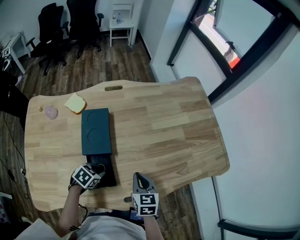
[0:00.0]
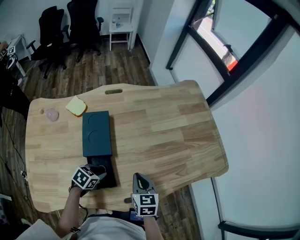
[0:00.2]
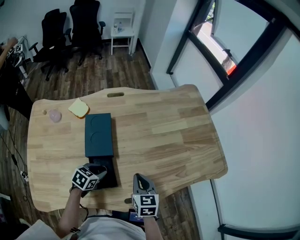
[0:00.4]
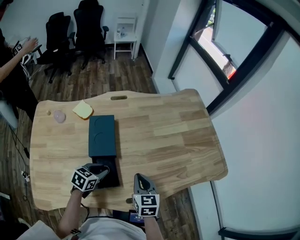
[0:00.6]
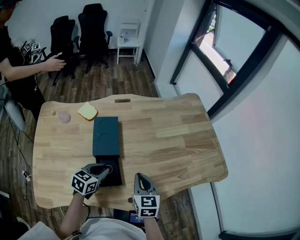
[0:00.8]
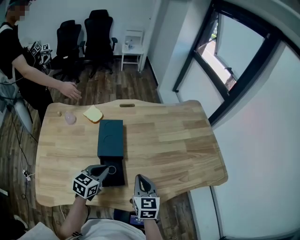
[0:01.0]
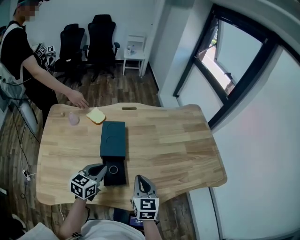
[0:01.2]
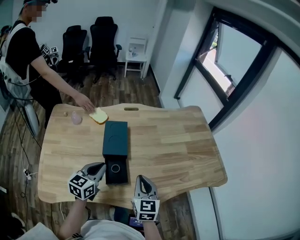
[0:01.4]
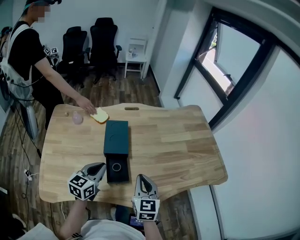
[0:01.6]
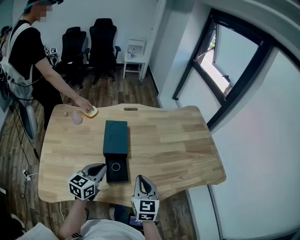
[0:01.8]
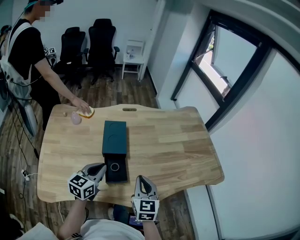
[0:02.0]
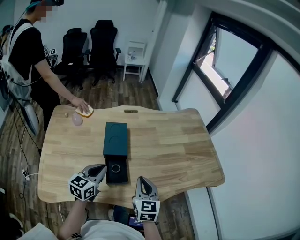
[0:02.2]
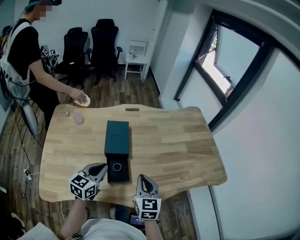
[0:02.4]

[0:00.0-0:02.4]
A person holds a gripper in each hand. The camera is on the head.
0:00.0 to 0:01.2: The right gripper is displaced upward and backward by approximately 10 cm. The left gripper shifts some 15 cm upward, and tilts its fingers some 40 degrees upward.
0:01.2 to 0:02.4: There are only small adjustments of the grippers.

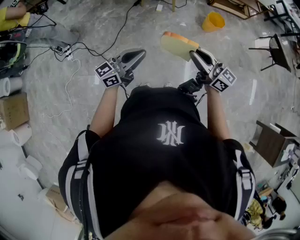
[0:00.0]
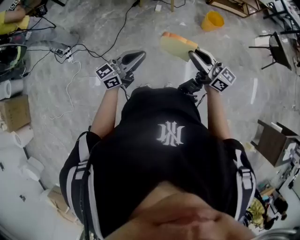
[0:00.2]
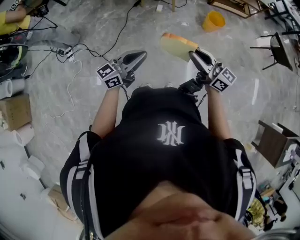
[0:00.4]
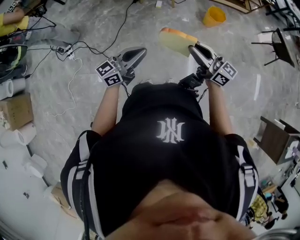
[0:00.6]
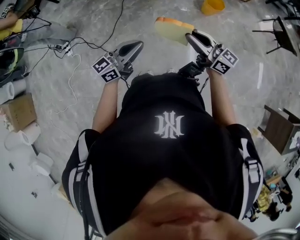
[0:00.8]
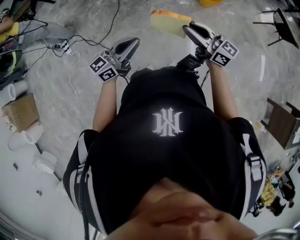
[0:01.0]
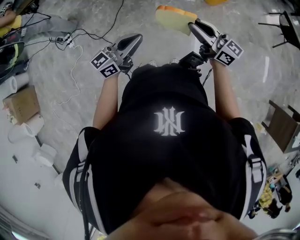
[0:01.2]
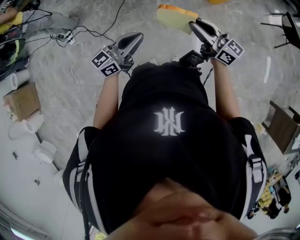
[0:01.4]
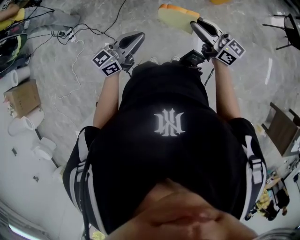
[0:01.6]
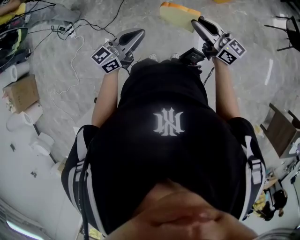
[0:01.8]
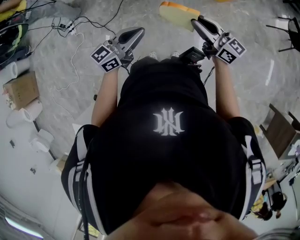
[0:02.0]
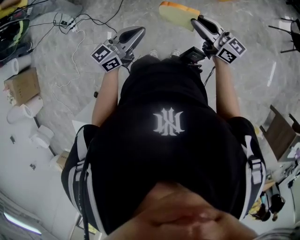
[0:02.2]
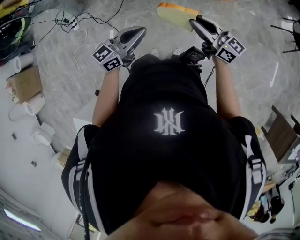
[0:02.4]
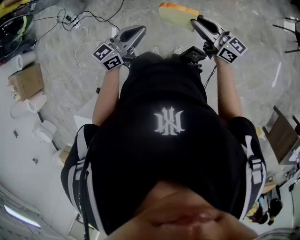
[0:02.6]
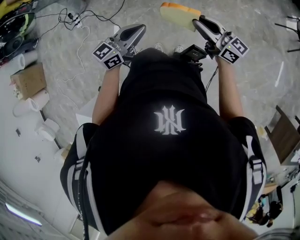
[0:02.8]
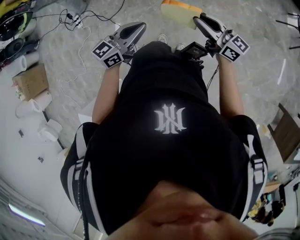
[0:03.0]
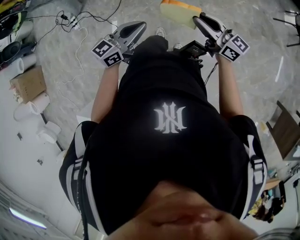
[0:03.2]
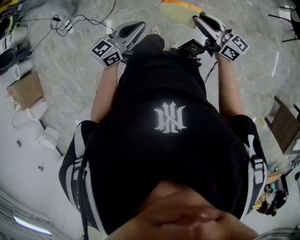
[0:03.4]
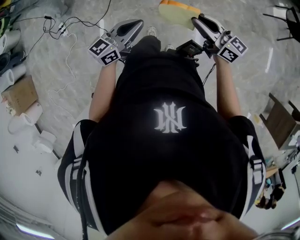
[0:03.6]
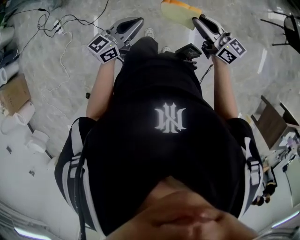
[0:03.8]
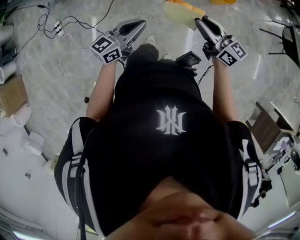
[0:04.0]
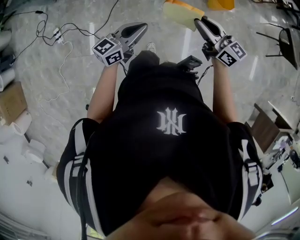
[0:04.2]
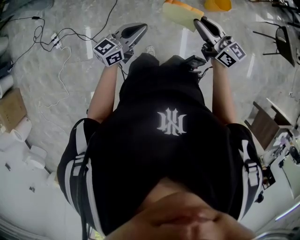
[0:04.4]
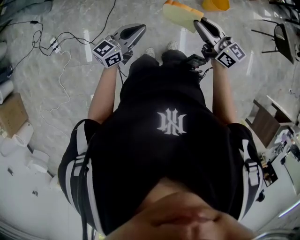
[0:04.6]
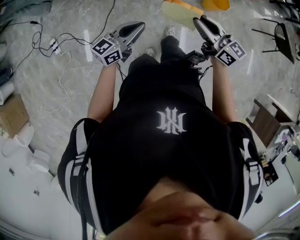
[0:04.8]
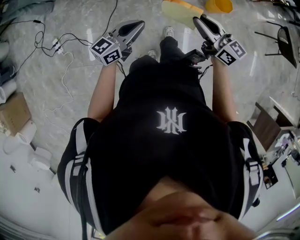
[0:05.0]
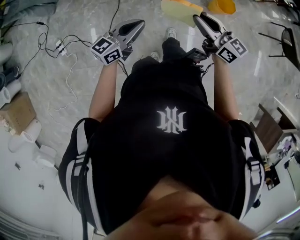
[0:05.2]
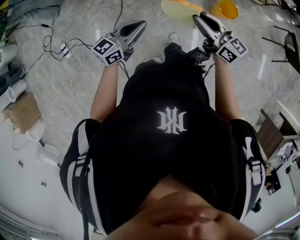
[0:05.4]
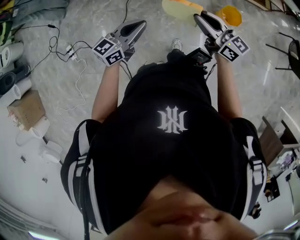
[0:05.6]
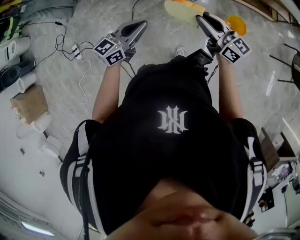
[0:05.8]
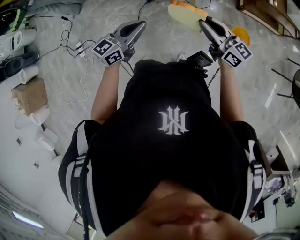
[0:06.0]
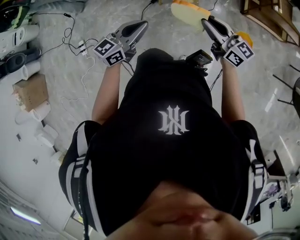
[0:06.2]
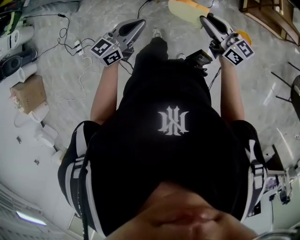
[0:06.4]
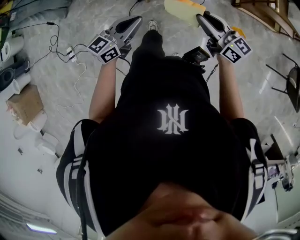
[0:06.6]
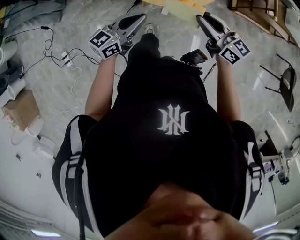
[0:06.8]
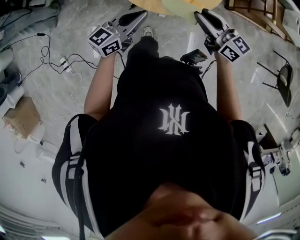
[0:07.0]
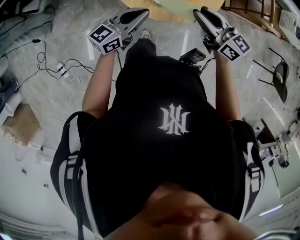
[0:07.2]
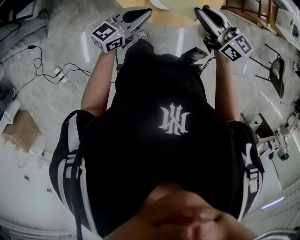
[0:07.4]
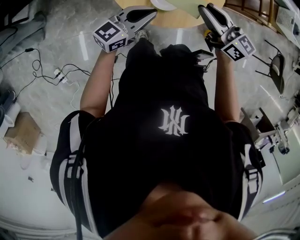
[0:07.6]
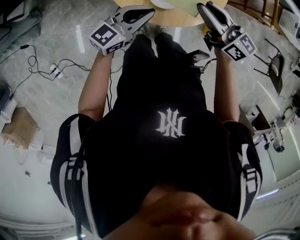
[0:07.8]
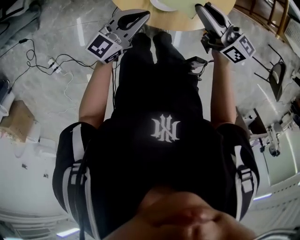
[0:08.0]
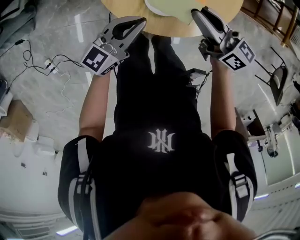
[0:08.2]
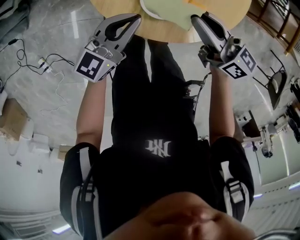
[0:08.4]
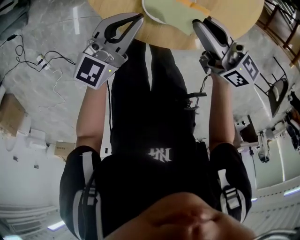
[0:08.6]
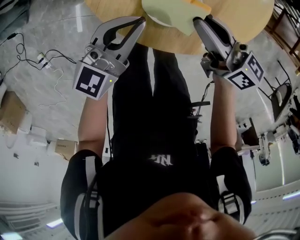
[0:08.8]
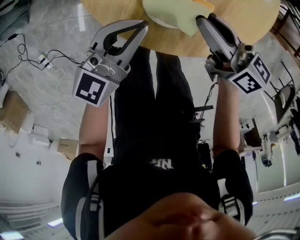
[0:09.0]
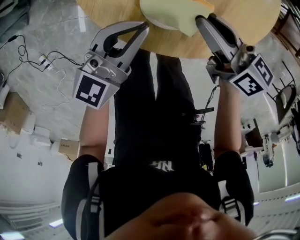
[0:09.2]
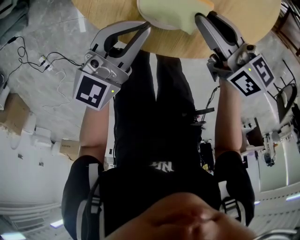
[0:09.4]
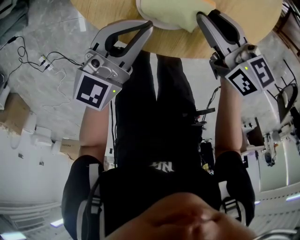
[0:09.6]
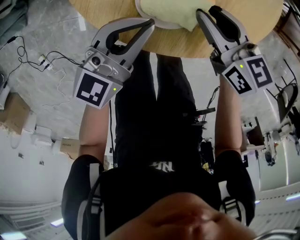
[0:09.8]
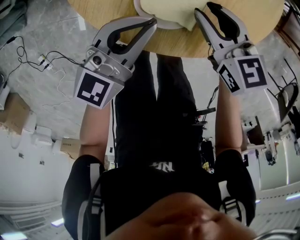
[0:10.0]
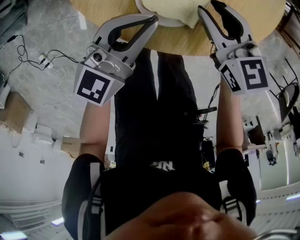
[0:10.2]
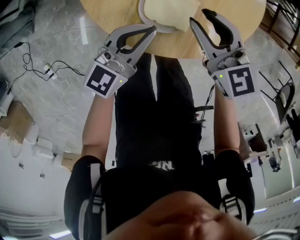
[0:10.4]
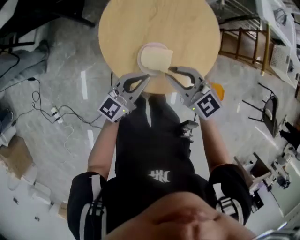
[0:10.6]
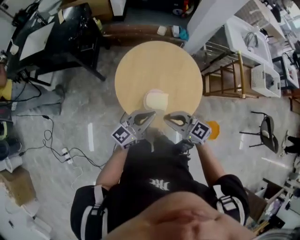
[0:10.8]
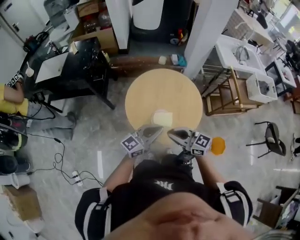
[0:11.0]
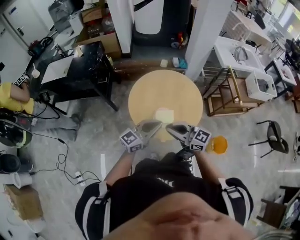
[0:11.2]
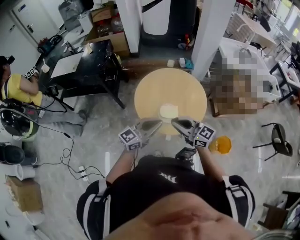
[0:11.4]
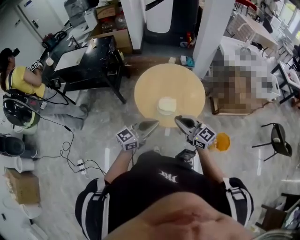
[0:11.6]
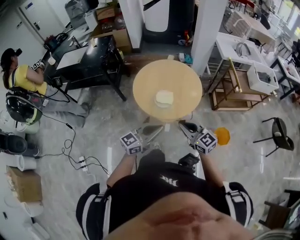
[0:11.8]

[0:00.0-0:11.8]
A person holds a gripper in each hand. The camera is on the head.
0:00.0 to 0:01.4: The left gripper goes some 5 cm to the right.
0:01.4 to 0:03.0: The right gripper moves some 5 cm.
0:03.0 to 0:04.4: The grippers both shift forward and to the left by approximately 20 cm.
0:04.4 to 0:06.0: Both grippers travel together forward, approximately 30 cm.
0:06.0 to 0:07.4: The two grippers go some 30 cm forward.
0:07.4 to 0:08.8: The left gripper goes some 5 cm downward, and changes its angle by approximately 20 degrees. Meanwhile the right gripper shifts some 15 cm downward, and changes its angle by some 20 degrees.
0:08.8 to 0:10.4: The right gripper travels downward and back again, roughly 10 cm each way, and rotates around the line of its fingers by roughly 40 degrees, counterclockwise from behind.
0:10.4 to 0:11.8: Both grippers move backward and upward, roughly 30 cm. The right gripper closes.

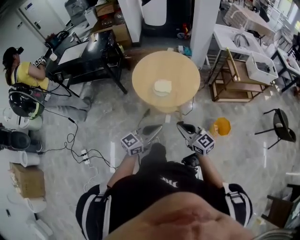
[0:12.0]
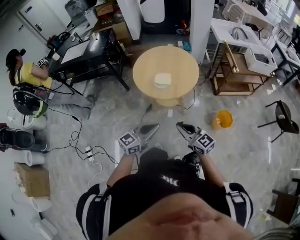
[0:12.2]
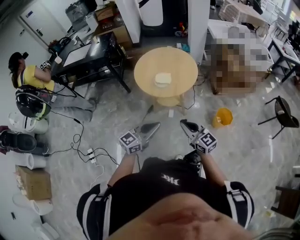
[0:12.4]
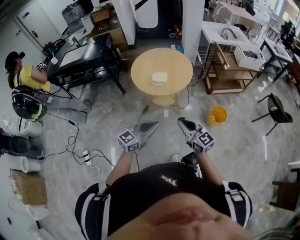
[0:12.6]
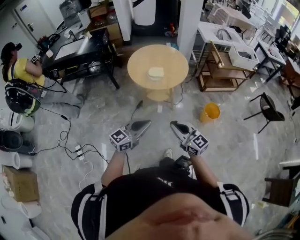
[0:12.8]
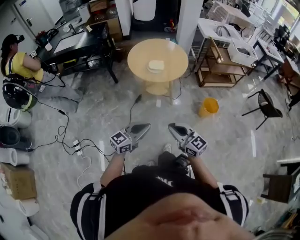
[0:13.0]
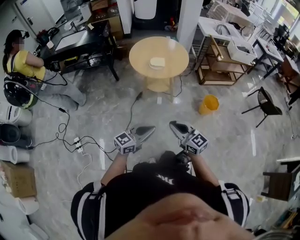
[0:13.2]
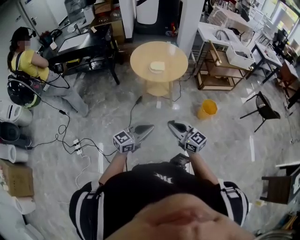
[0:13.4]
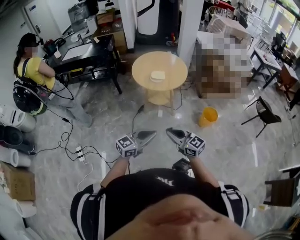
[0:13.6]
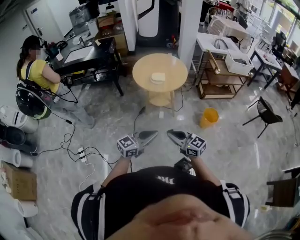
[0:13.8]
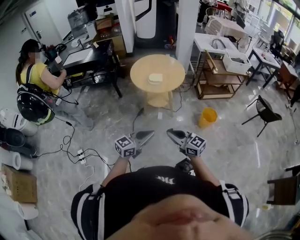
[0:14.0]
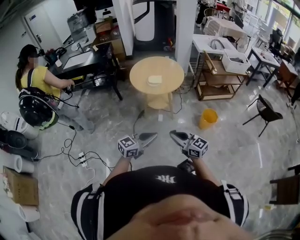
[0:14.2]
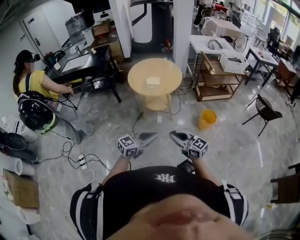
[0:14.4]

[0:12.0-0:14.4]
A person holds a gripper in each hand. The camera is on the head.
0:12.0 to 0:13.2: The two grippers go roughly 25 cm backward.
0:13.2 to 0:14.4: The grippers both shift to the right by approximately 5 cm.

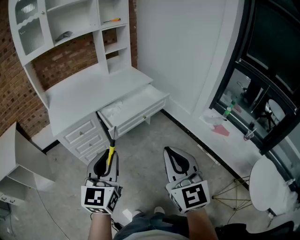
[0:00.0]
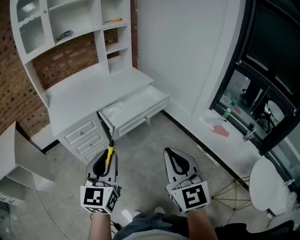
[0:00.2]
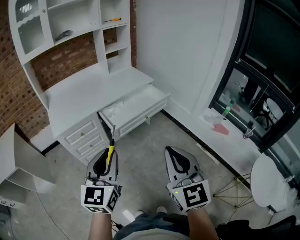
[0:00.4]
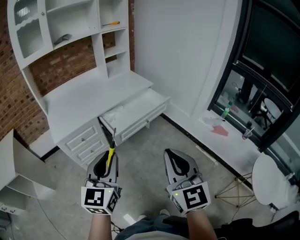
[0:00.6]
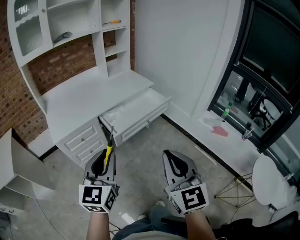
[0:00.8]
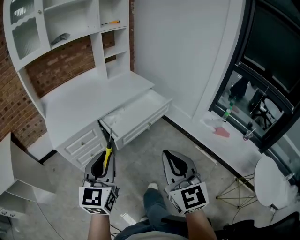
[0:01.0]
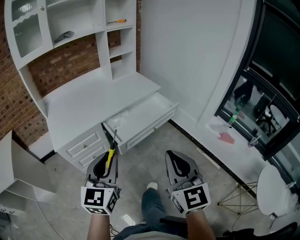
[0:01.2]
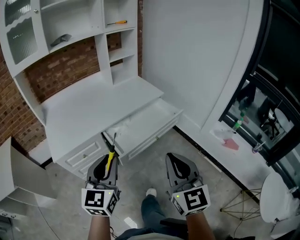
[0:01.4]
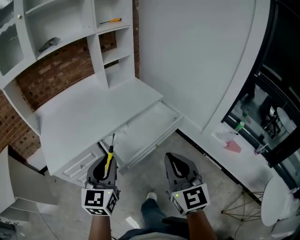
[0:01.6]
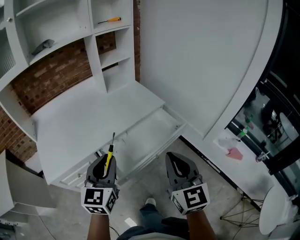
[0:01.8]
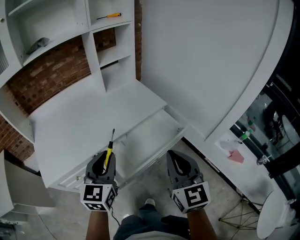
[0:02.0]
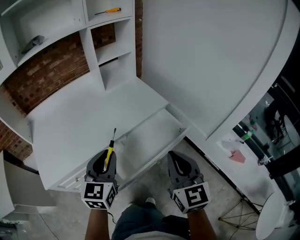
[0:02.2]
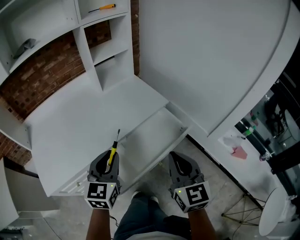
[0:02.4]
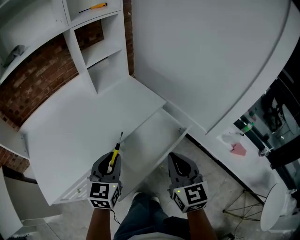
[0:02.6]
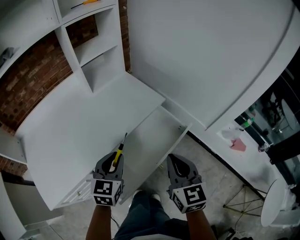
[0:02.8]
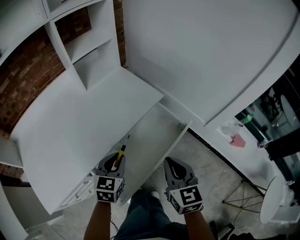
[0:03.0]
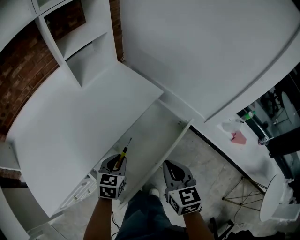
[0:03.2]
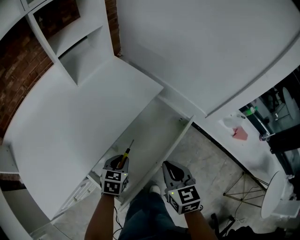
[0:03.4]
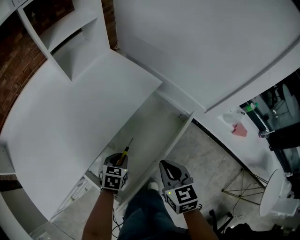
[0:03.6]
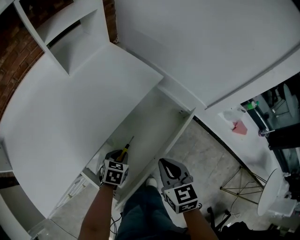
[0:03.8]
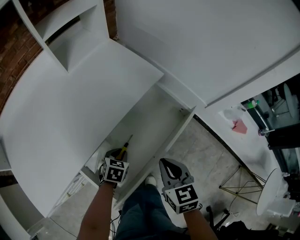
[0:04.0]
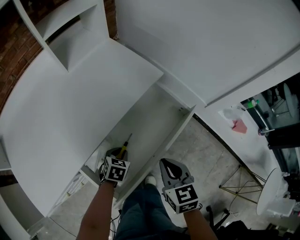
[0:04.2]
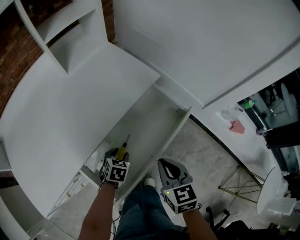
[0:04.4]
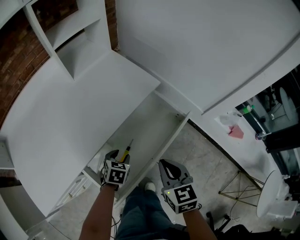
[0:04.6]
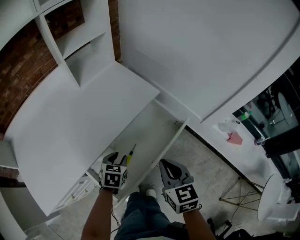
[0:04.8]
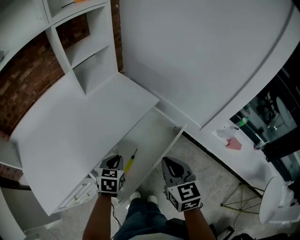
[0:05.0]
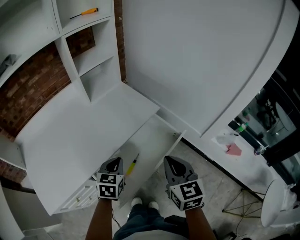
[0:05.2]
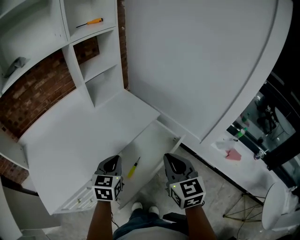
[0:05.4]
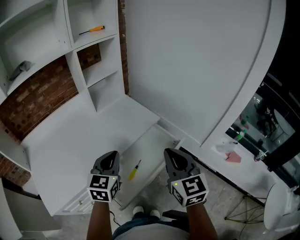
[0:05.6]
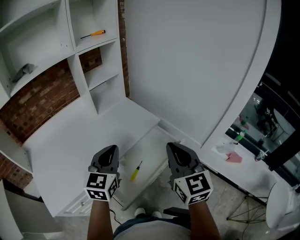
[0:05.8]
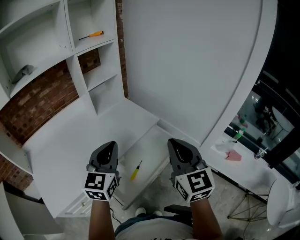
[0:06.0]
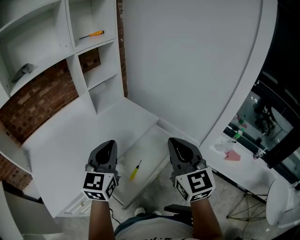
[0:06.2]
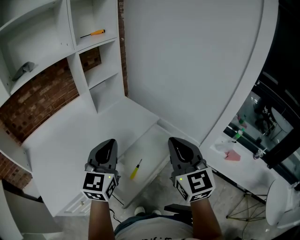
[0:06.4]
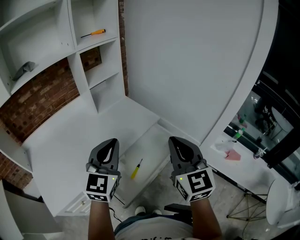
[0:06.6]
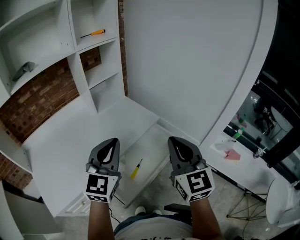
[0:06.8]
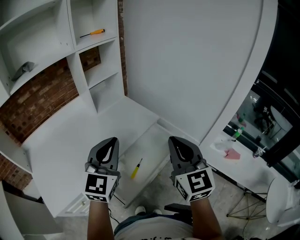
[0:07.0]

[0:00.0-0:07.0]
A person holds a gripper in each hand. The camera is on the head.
0:00.0 to 0:01.4: Both grippers travel together forward and to the left, roughly 20 cm.
0:01.4 to 0:02.8: Both grippers move forward, approximately 35 cm. The left gripper swivels about 20 degrees. The right gripper swivels roughly 20 degrees.
0:02.8 to 0:04.2: The left gripper heads downward, covering roughly 30 cm, and points its fingers approximately 40 degrees further downward; the right gripper shifts about 15 cm downward, and swivels some 20 degrees.
0:04.2 to 0:05.6: Both grippers move upward, approximately 30 cm. The right gripper swivels roughly 30 degrees; the left gripper angles its fingers upward, by approximately 40 degrees, and opens, then closes again.
0:05.6 to 0:07.0: The left gripper travels upward by about 10 cm, and swivels roughly 20 degrees, while the right gripper moves upward, about 5 cm.
